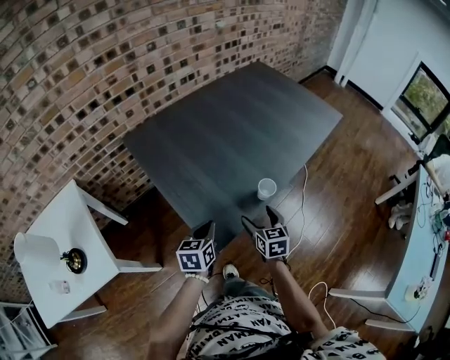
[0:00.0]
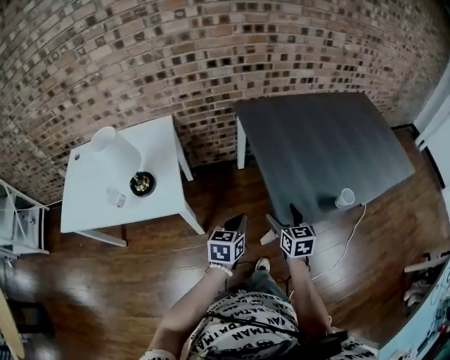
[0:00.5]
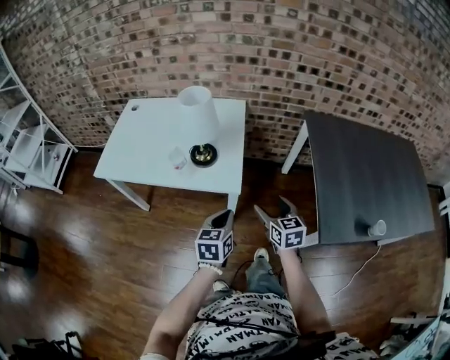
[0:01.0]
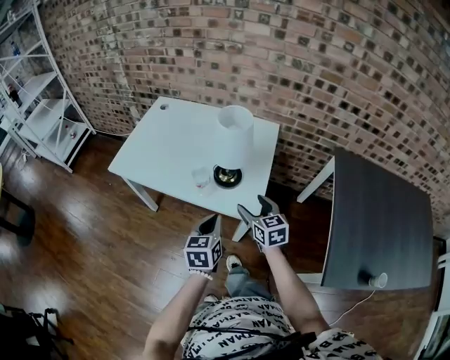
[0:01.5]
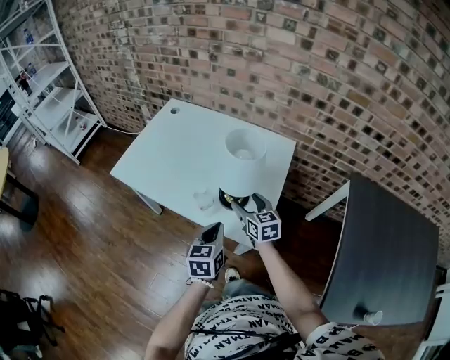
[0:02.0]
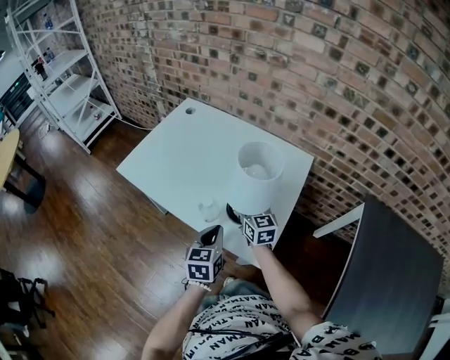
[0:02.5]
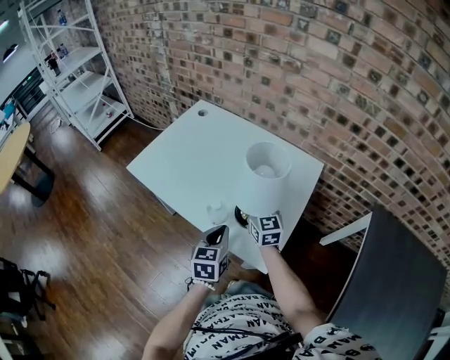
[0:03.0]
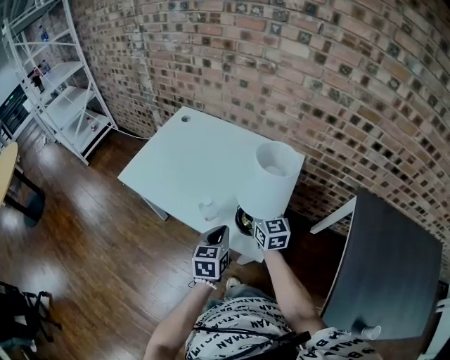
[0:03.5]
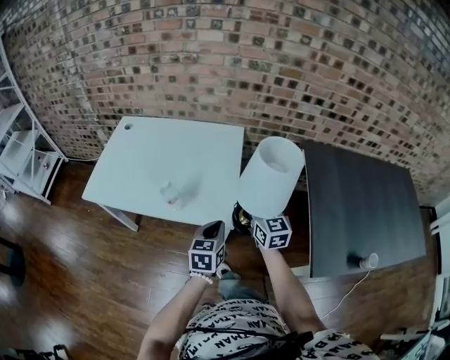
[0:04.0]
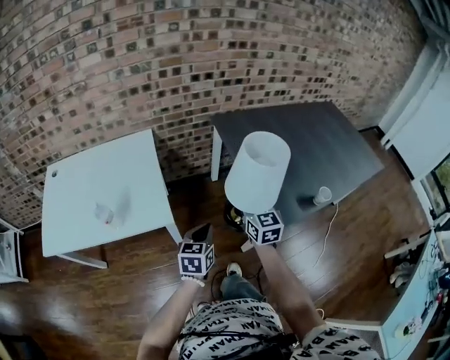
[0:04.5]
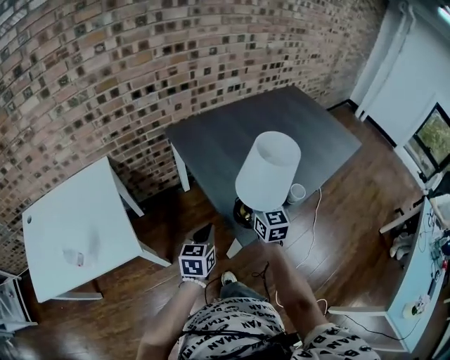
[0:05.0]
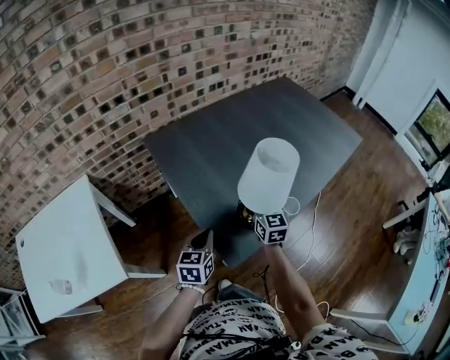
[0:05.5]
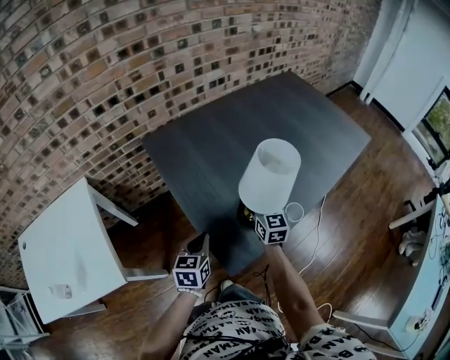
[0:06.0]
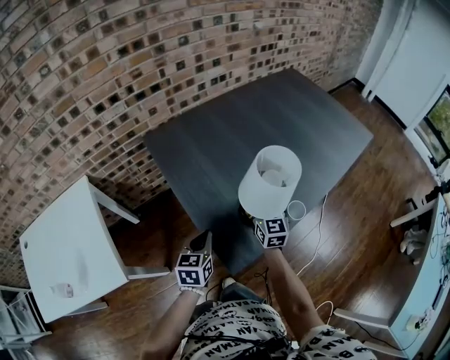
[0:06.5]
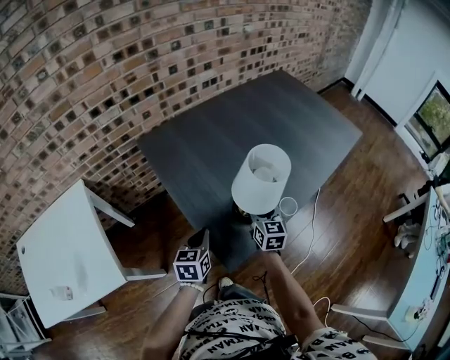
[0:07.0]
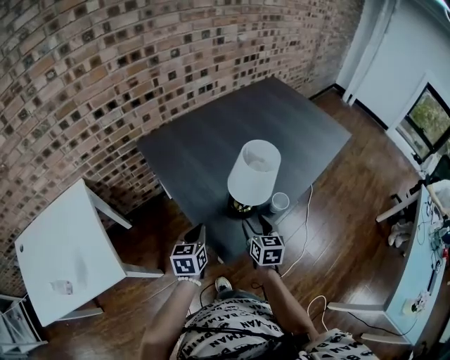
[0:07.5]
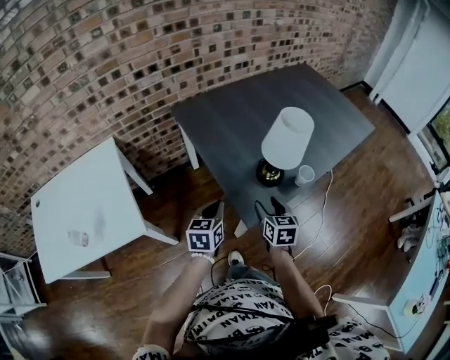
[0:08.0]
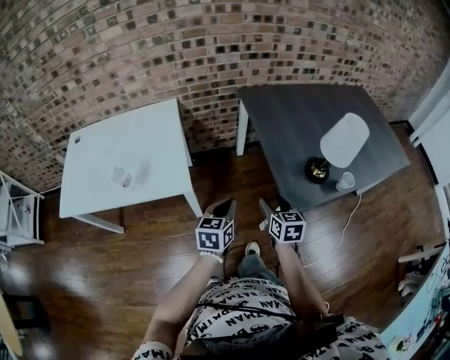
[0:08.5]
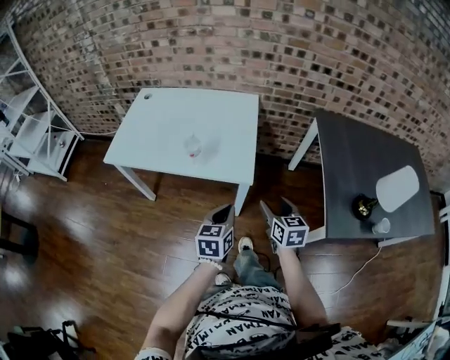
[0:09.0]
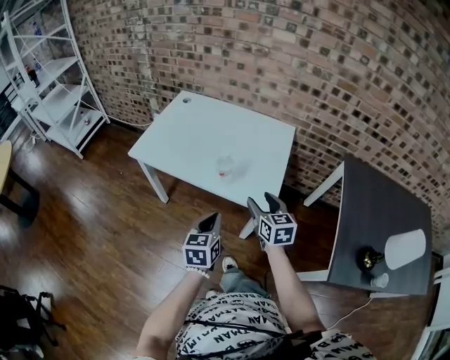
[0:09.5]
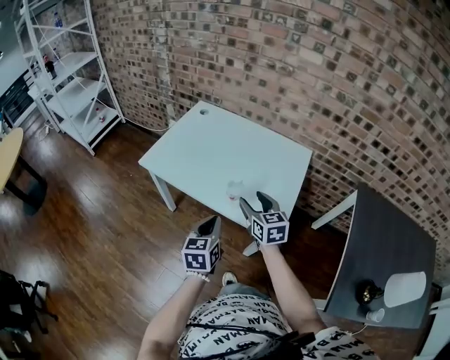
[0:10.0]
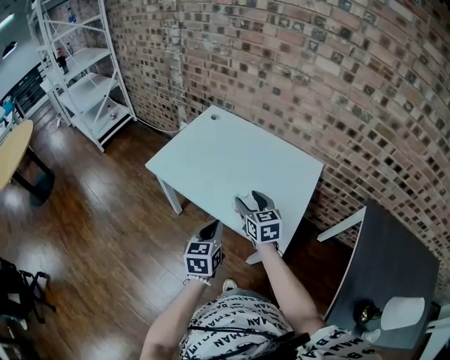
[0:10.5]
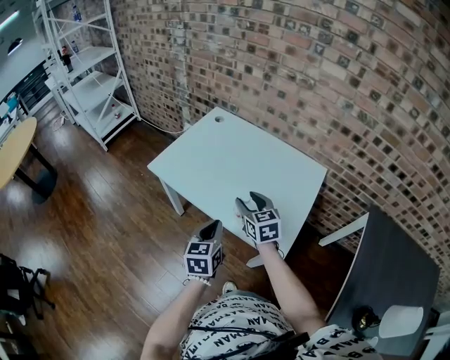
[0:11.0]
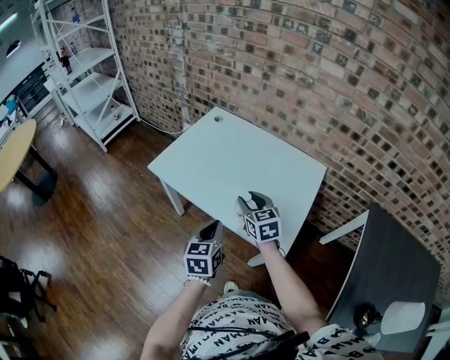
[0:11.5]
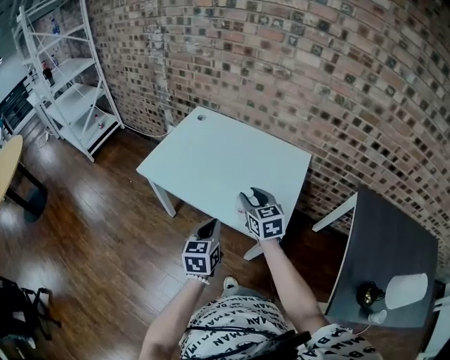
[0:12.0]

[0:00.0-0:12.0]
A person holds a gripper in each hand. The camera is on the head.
0.0 to 2.0 s: The two grippers travel together, about 70 cm. The left gripper turns by about 60 degrees; the right gripper swivels about 70 degrees.
2.0 to 4.0 s: The left gripper changes place by roughly 10 cm, and turns by about 20 degrees; the right gripper ends up roughly 20 cm from where it was, swivels roughly 30 degrees, and closes up.
4.0 to 6.0 s: The two grippers travel together, roughly 50 cm. The left gripper changes its angle by roughly 40 degrees; the right gripper turns by some 50 degrees.
6.0 to 8.0 s: The right gripper travels backward by some 20 cm, turns by some 20 degrees, and opens. Meanwhile the left gripper moves backward, roughly 10 cm.
8.0 to 10.0 s: The pair of grippers is taken roughly 60 cm. The left gripper changes its angle by about 60 degrees, while the right gripper rotates some 70 degrees.

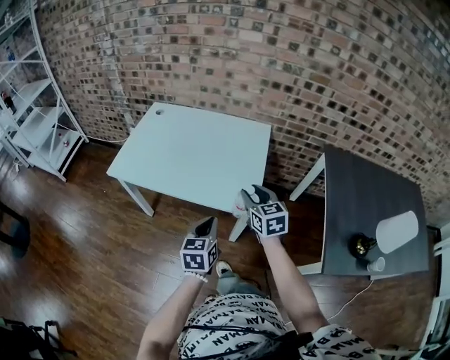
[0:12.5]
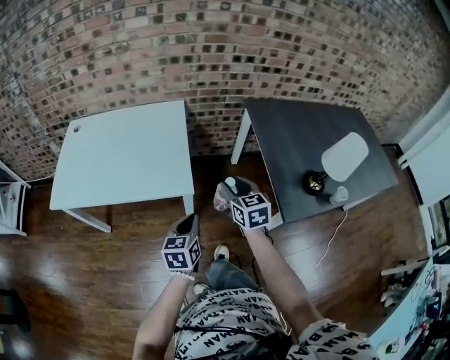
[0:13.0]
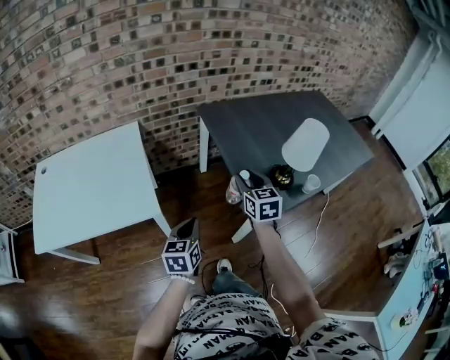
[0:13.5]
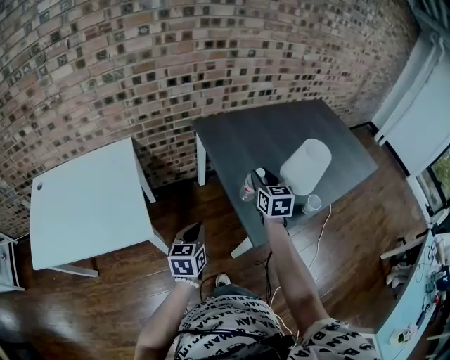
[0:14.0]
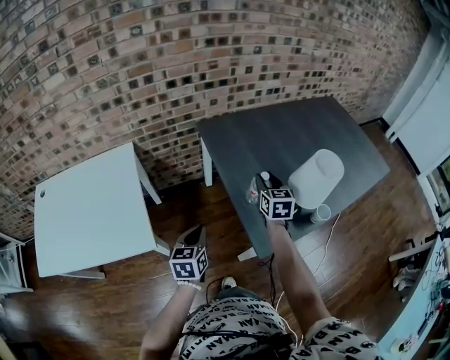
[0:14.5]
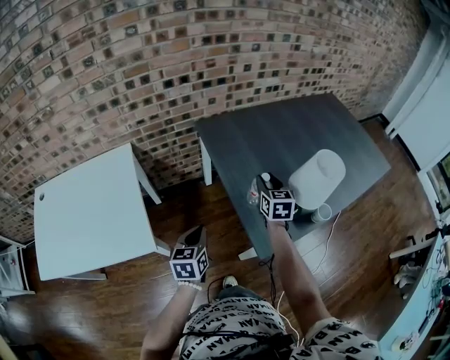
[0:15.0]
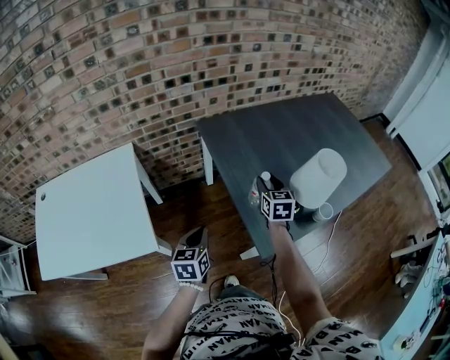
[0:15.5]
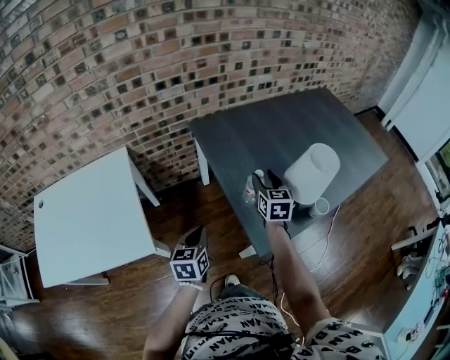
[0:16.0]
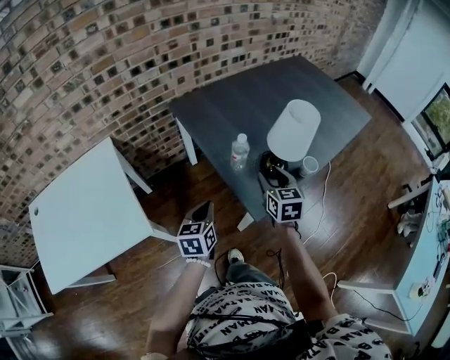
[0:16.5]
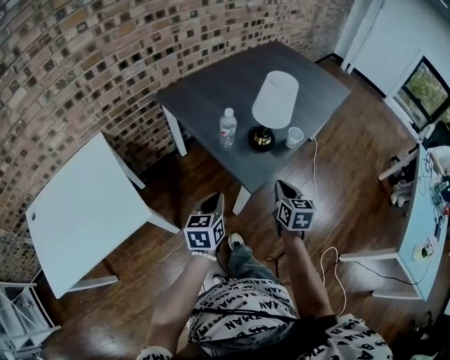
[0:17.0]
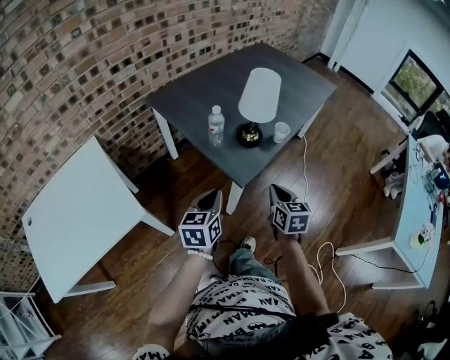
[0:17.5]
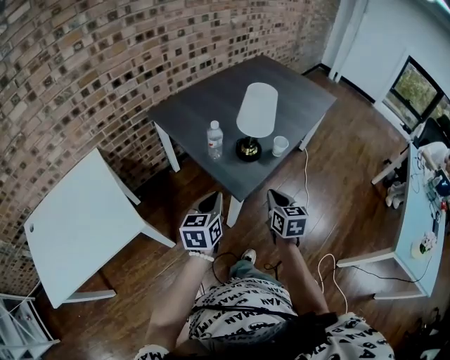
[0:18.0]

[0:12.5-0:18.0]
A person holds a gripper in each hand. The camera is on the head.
12.5 to 14.5 s: The left gripper changes place by roughly 40 cm, and changes its angle by some 30 degrees; the right gripper shifts by approximately 60 cm, and turns by approximately 50 degrees.
14.5 to 16.0 s: The grippers move only a little.
16.0 to 18.0 s: The right gripper moves backward and to the right, approximately 35 cm, and closes. The left gripper goes approximately 20 cm to the right, backward and upward, and swivels about 30 degrees.

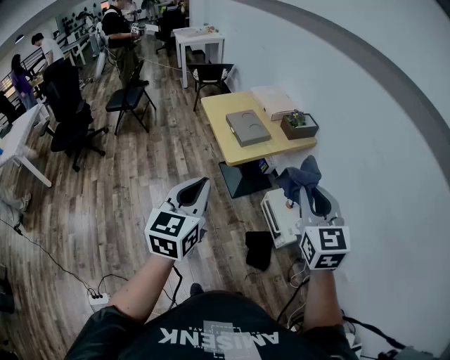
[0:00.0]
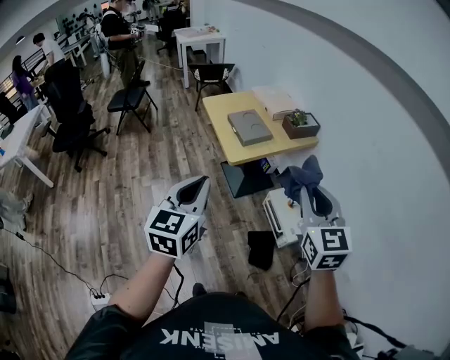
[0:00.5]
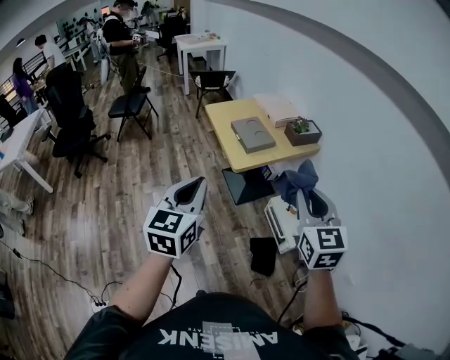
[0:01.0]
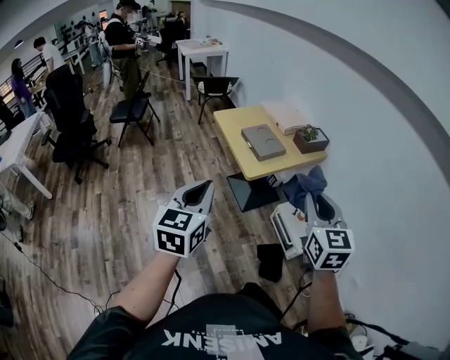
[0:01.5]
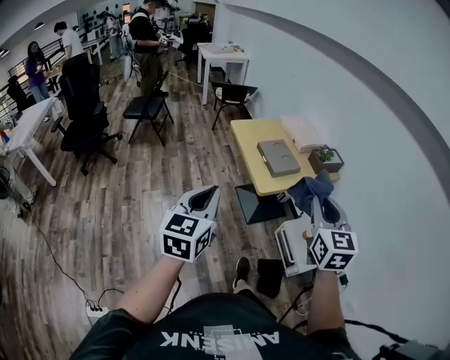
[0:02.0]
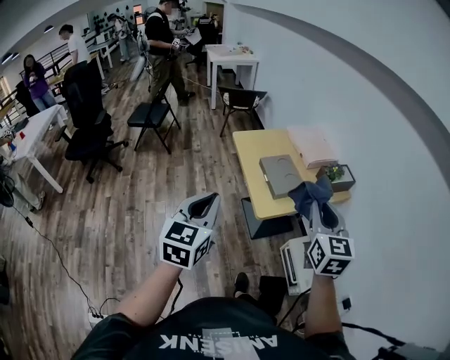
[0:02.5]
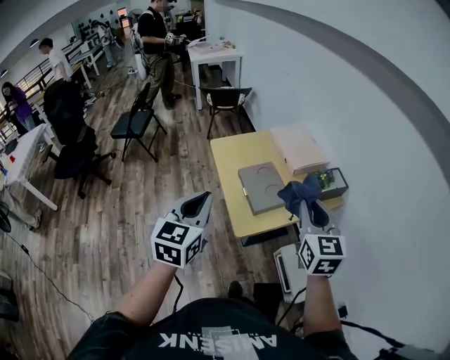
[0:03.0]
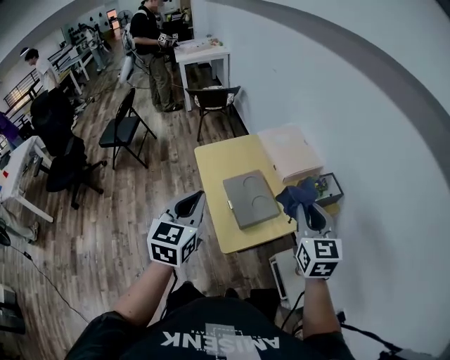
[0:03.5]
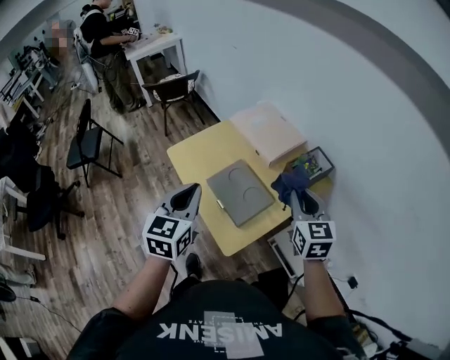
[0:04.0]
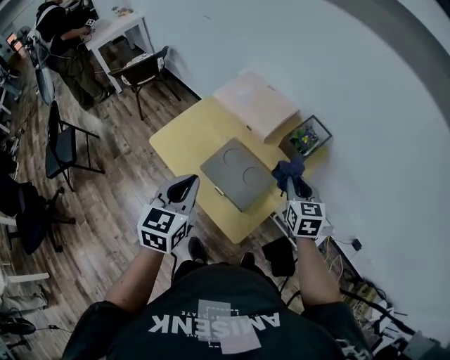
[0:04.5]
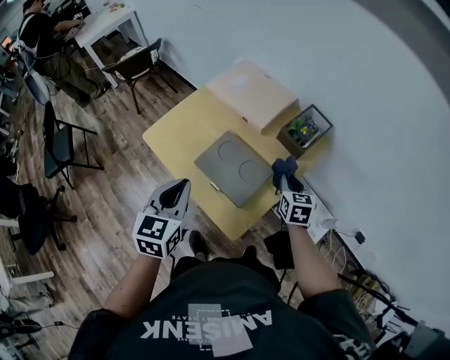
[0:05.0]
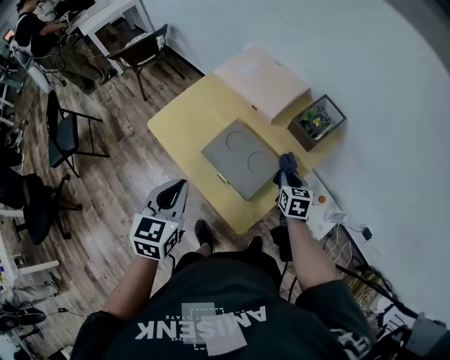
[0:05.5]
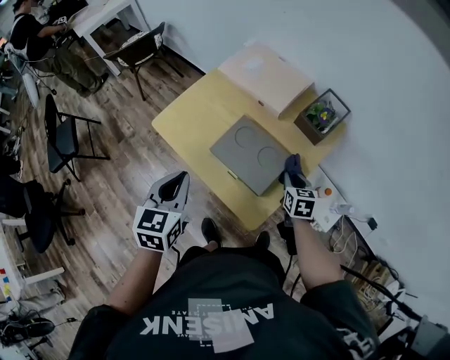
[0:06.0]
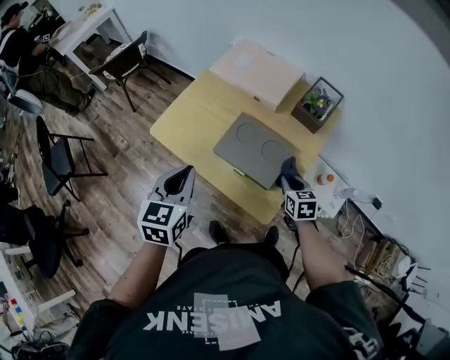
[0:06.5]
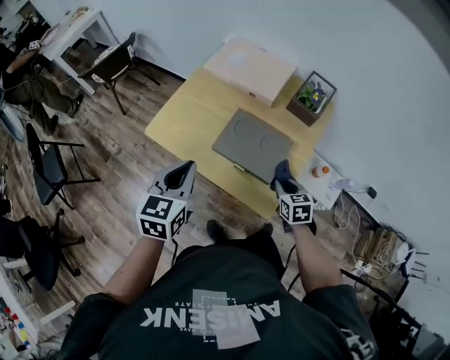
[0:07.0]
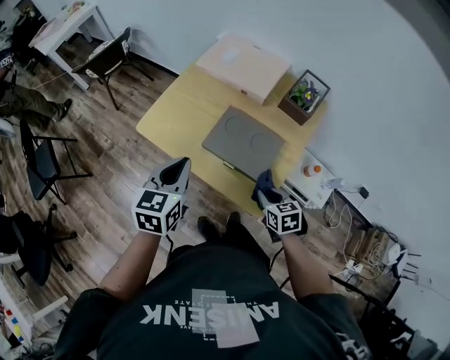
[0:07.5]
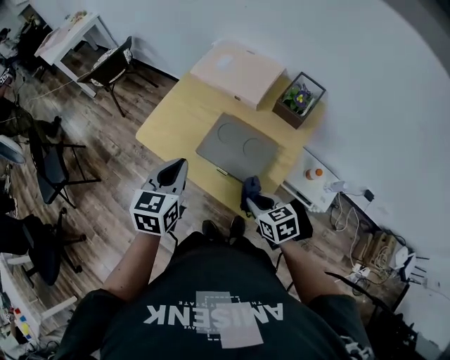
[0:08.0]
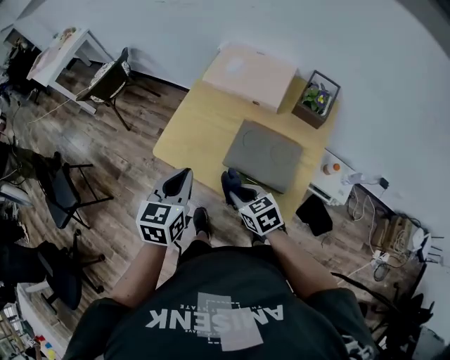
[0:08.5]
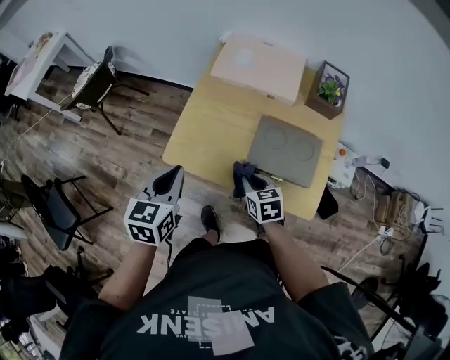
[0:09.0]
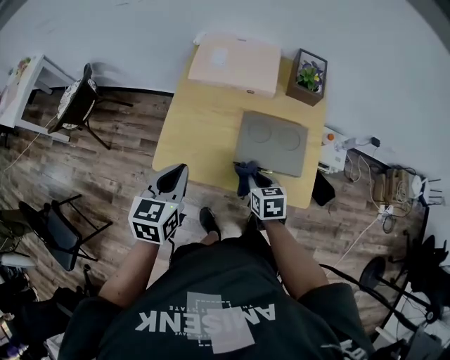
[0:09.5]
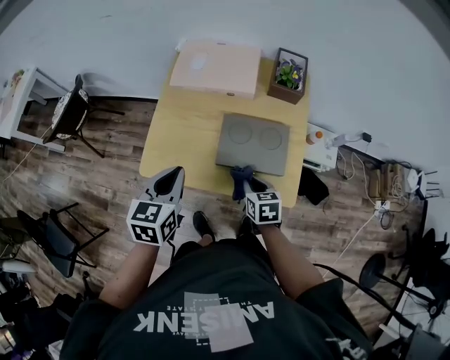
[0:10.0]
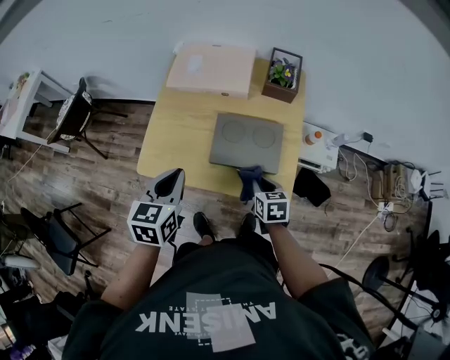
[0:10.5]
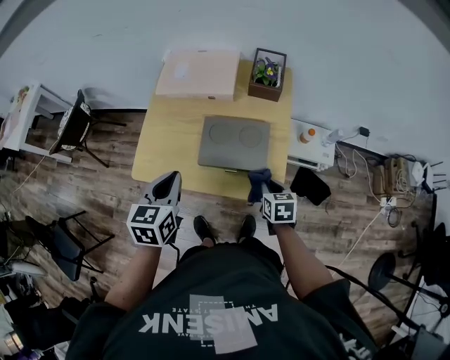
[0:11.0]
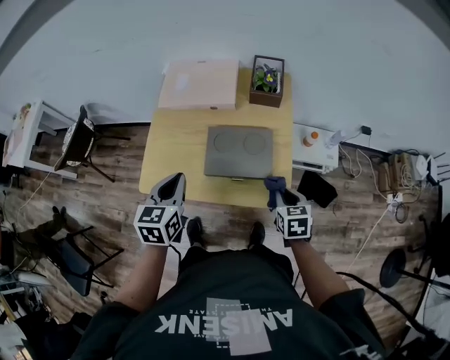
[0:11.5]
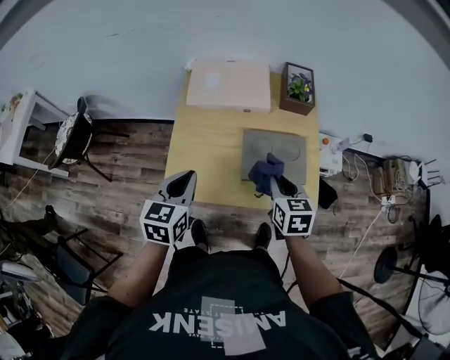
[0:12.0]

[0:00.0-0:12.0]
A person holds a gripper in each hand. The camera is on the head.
0.0 to 2.0 s: The right gripper heads to the left and forward, covering roughly 15 cm. The left gripper travels to the left by roughly 15 cm.
2.0 to 4.0 s: Both grippers are carried forward, about 40 cm.
4.0 to 6.0 s: The right gripper goes roughly 25 cm downward, and swivels roughly 30 degrees; the left gripper goes approximately 15 cm downward and to the left.
6.0 to 8.0 s: The right gripper goes about 20 cm backward, to the left and upward, and swivels some 20 degrees.
8.0 to 10.0 s: The right gripper swivels about 40 degrees. Meanwhile the left gripper turns by roughly 20 degrees.
10.0 to 12.0 s: The left gripper is displaced to the left by some 5 cm; the right gripper heads upward, covering roughly 10 cm, and travels to the right and back again, about 15 cm each way.
